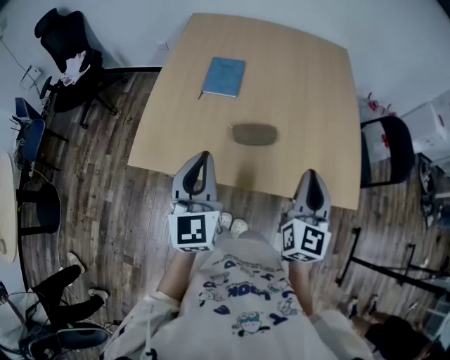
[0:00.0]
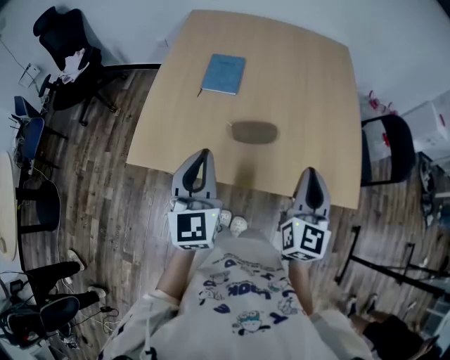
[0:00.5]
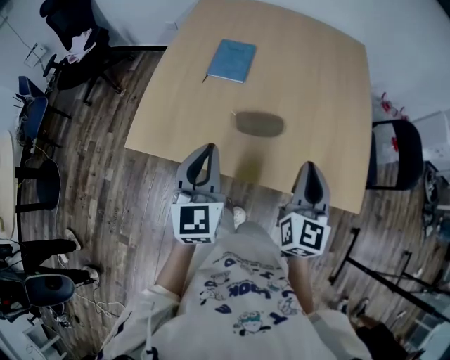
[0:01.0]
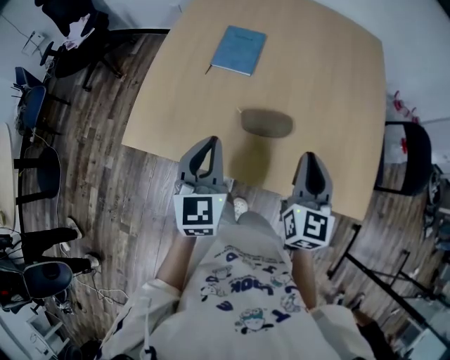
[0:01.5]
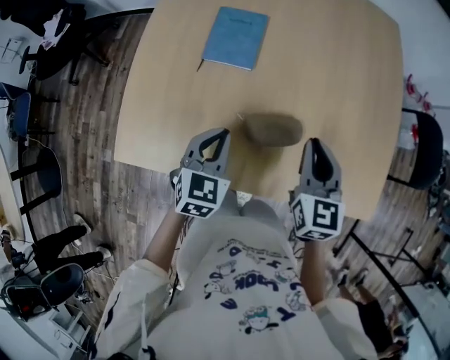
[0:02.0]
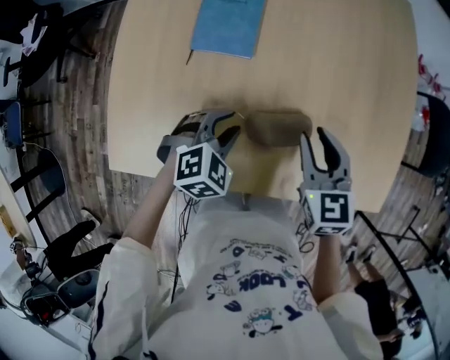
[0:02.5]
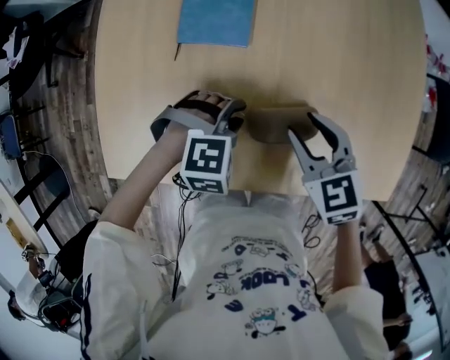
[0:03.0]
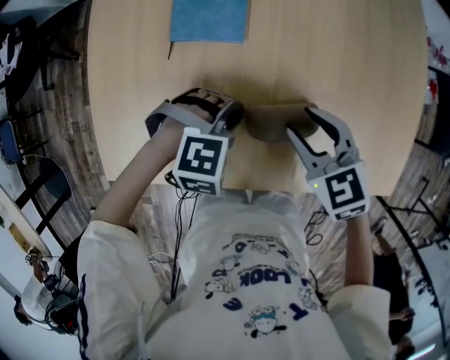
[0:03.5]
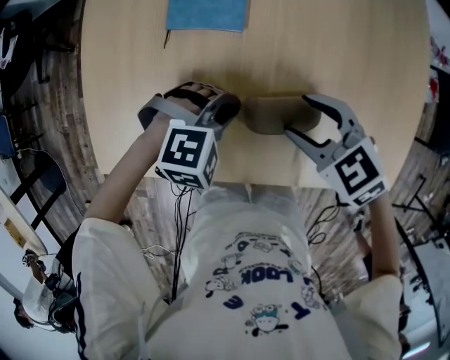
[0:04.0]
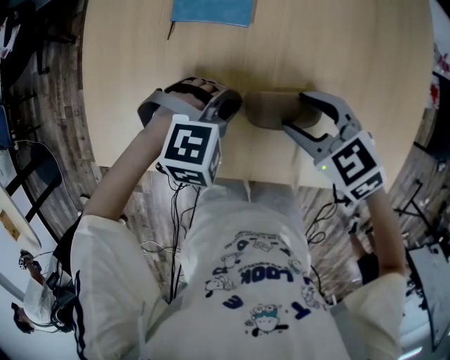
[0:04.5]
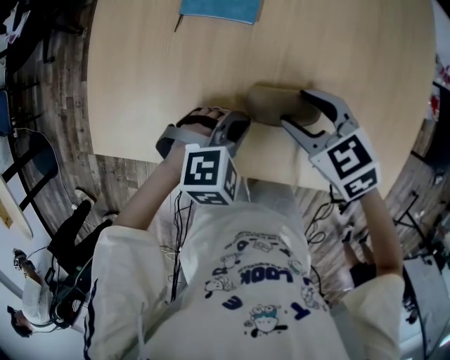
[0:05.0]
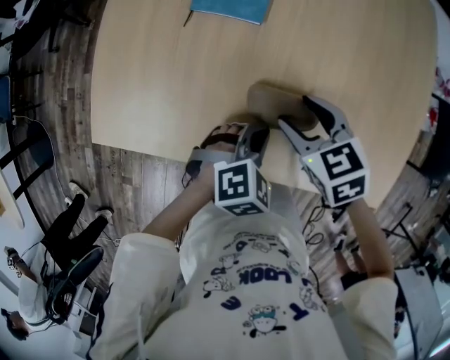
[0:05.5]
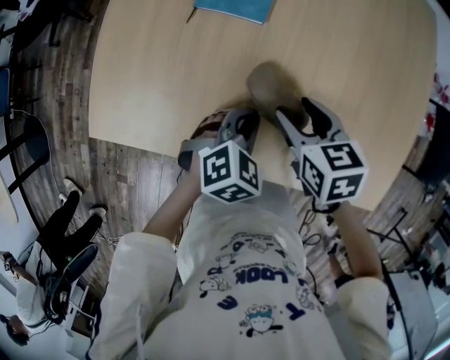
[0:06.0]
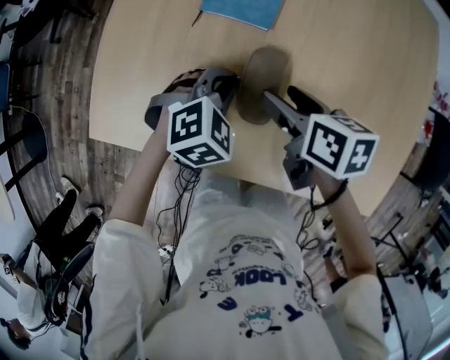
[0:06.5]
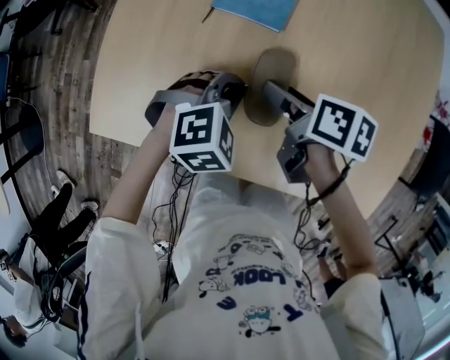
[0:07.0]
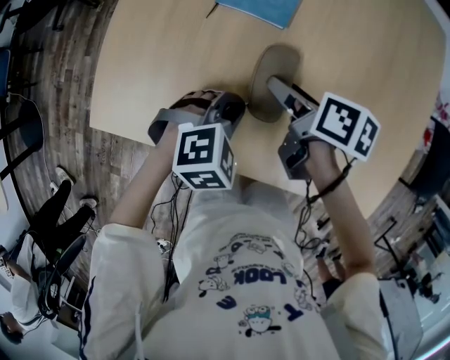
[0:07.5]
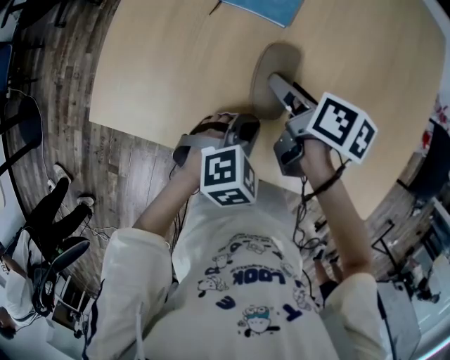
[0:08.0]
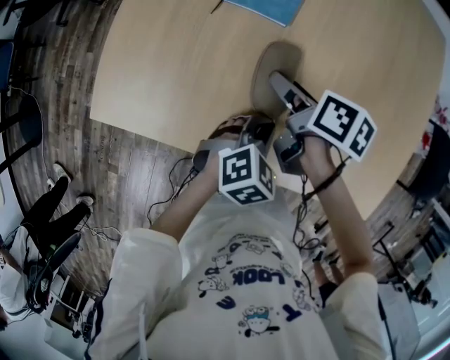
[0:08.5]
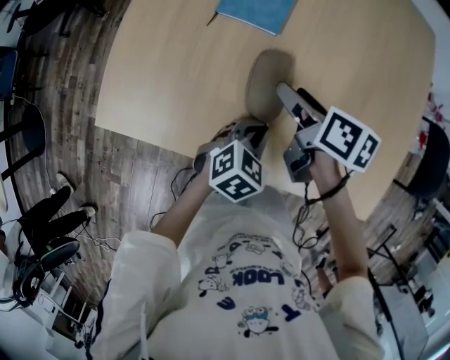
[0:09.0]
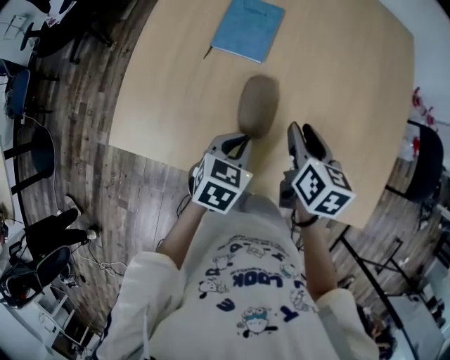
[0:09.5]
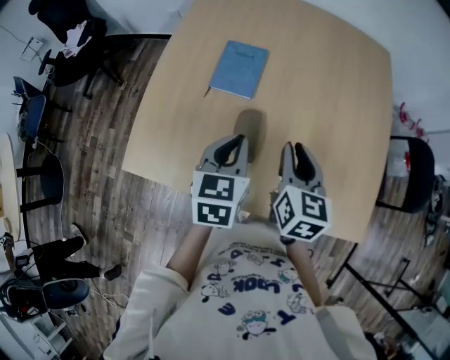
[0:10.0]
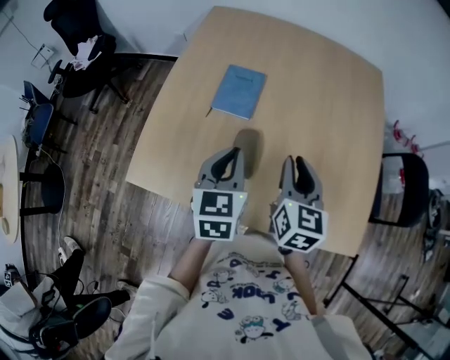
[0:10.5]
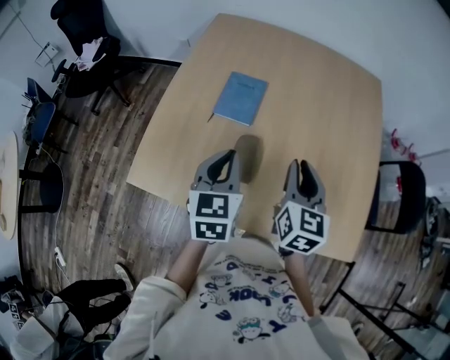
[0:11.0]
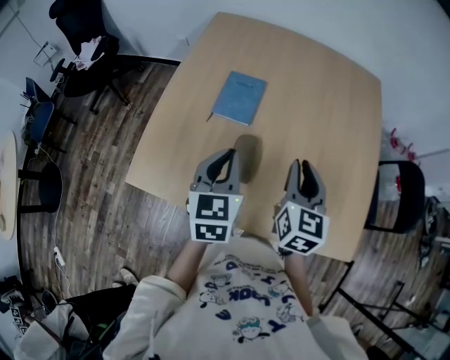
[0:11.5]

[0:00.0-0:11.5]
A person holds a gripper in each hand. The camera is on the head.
0:00.0 to 0:02.0: The right gripper is displaced forward and downward by some 20 cm, and rotates approximately 30 degrees, while the left gripper goes some 25 cm downward and forward, and points its fingers some 30 degrees further downward.
0:02.0 to 0:04.0: The two grippers go about 10 cm downward. The left gripper rotates around the line of its fingers by some 50 degrees, clockwise from behind, and opens, then closes once more. The right gripper points its fingers roughly 30 degrees further downward, and opens.
0:04.0 to 0:06.0: The left gripper rotates around the line of its fingers by roughly 50 degrees, counterclockwise from behind. The right gripper turns by about 30 degrees.
0:06.0 to 0:07.5: The right gripper goes roughly 10 cm forward and to the left, and swivels about 40 degrees; the left gripper travels to the left by roughly 5 cm, and travels forward and back again, approximately 10 cm each way.
0:07.5 to 0:09.5: The right gripper moves to the right and upward, some 10 cm, rotates approximately 30 degrees, and closes its fingers, while the left gripper rotates around the line of its fingers by roughly 50 degrees, counterclockwise from behind.
0:09.5 to 0:11.5: Both grippers move upward, roughly 15 cm. The left gripper swivels about 30 degrees; the right gripper changes its angle by some 30 degrees.

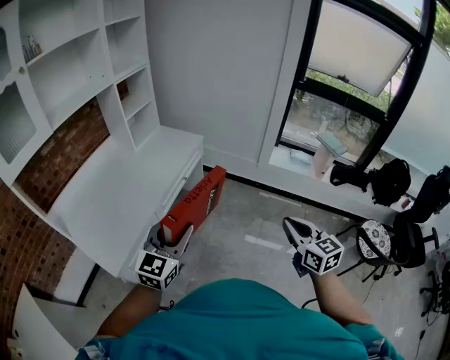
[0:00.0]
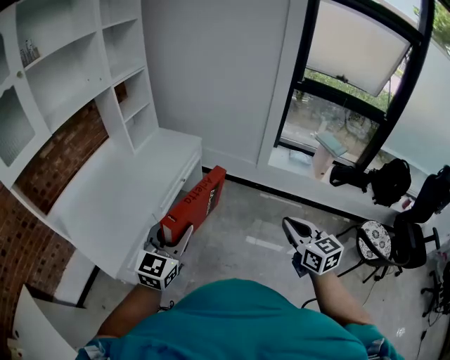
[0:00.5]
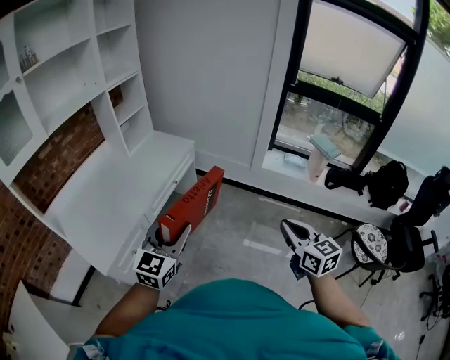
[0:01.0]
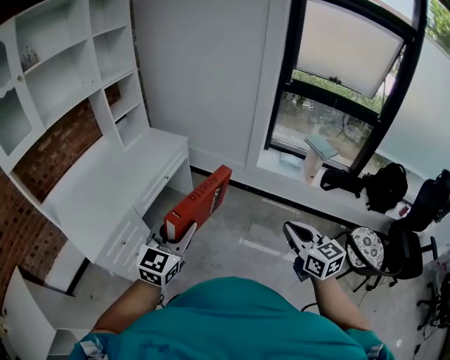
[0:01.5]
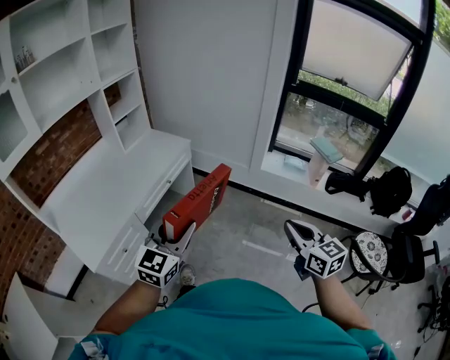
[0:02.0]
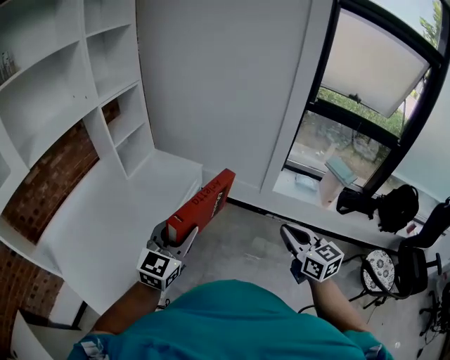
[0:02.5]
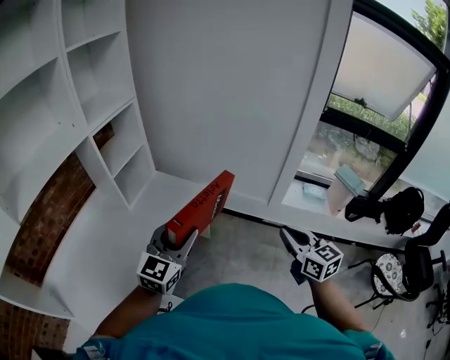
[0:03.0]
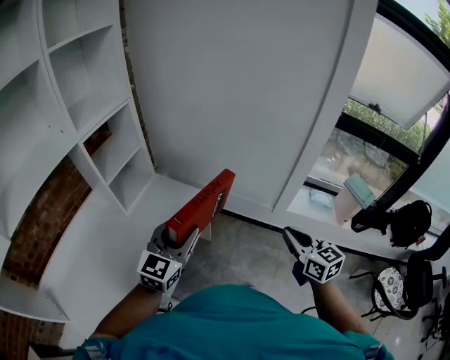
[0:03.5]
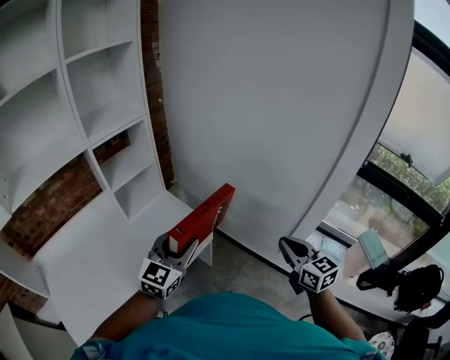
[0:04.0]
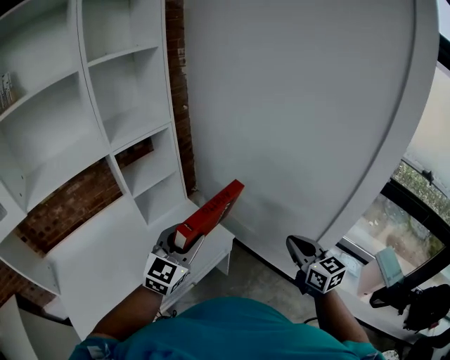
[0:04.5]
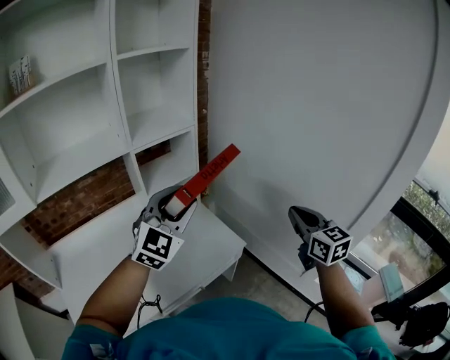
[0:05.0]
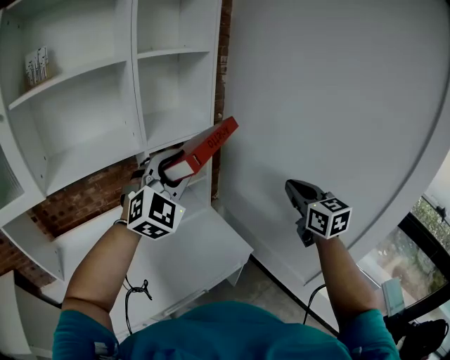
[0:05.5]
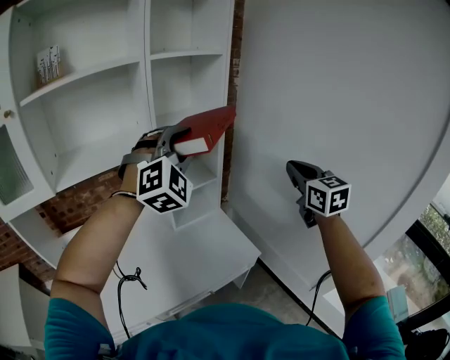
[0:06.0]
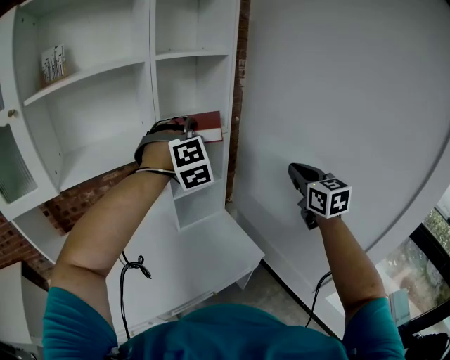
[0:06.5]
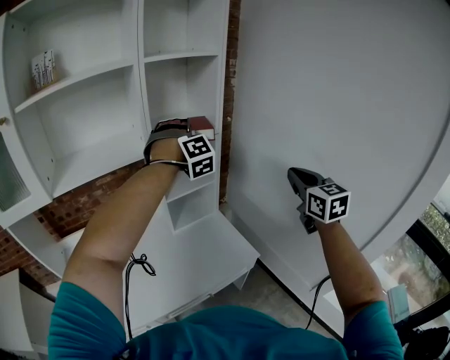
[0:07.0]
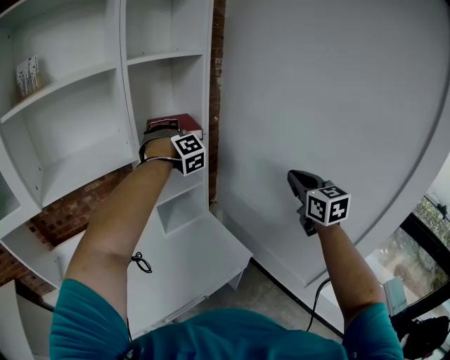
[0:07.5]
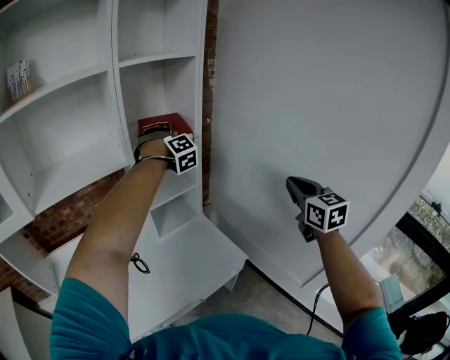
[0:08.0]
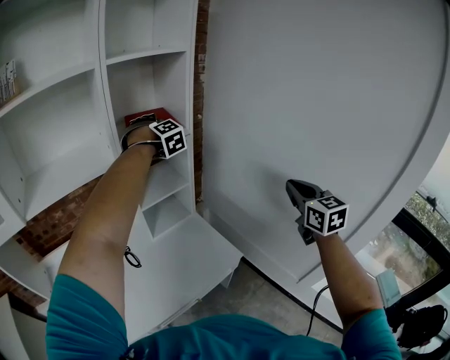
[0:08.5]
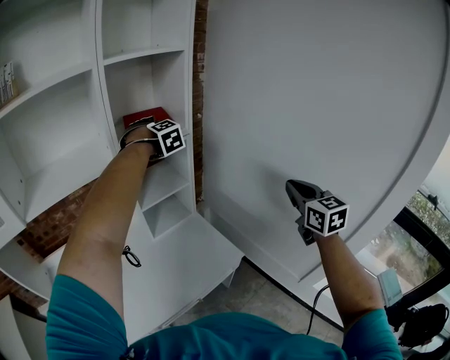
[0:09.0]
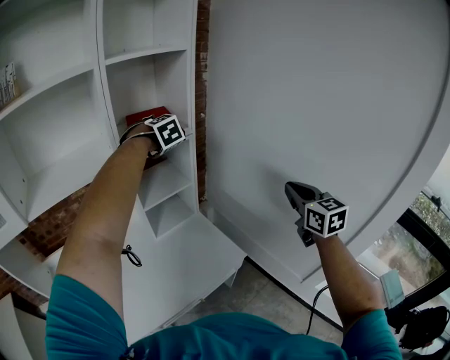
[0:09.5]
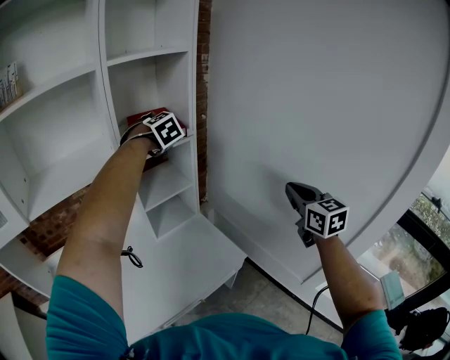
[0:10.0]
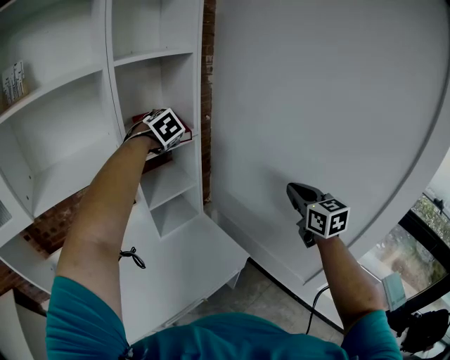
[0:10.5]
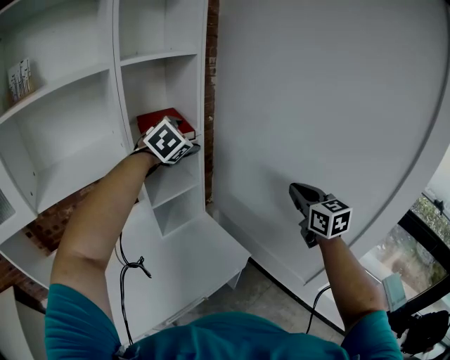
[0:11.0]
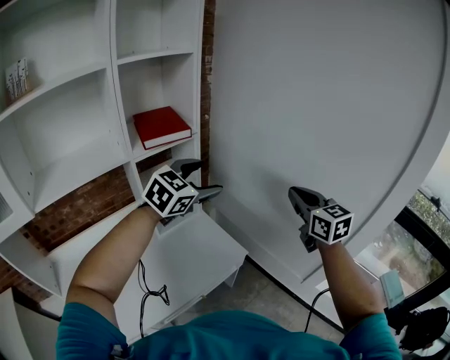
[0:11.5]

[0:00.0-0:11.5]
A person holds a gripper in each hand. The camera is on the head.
0:00.0 to 0:02.0: The grippers both shift to the right by roughly 15 cm.
0:02.0 to 0:04.0: The two grippers travel together, forward, approximately 50 cm.
0:04.0 to 0:06.0: The left gripper moves upward, to the left and forward, about 35 cm, and rolls clockwise, seen from behind, by about 60 degrees. The right gripper is displaced forward, upward and to the left by about 40 cm.
0:06.0 to 0:07.5: The right gripper moves some 5 cm. The left gripper moves forward, approximately 20 cm, and changes its angle by about 40 degrees.
0:07.5 to 0:09.5: The left gripper changes place by about 5 cm, changes its angle by some 30 degrees, and opens up.
0:09.5 to 0:11.5: The left gripper shifts by about 25 cm, and turns by approximately 60 degrees.

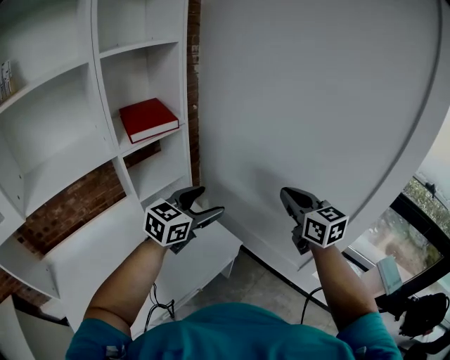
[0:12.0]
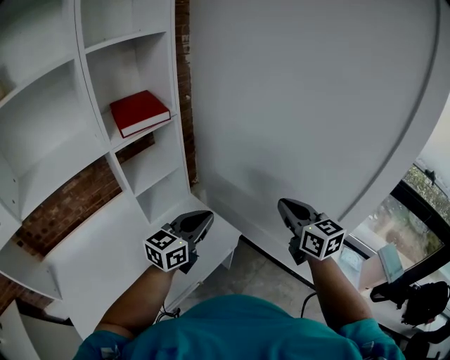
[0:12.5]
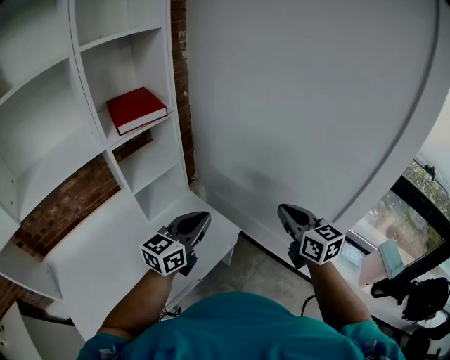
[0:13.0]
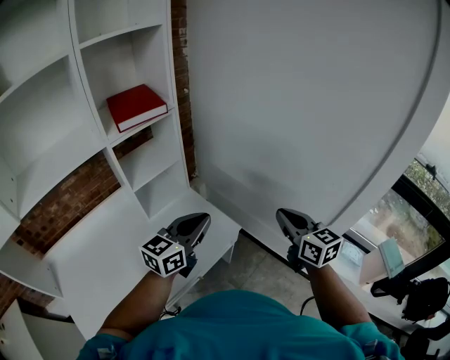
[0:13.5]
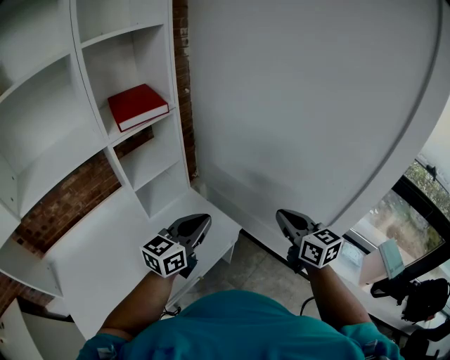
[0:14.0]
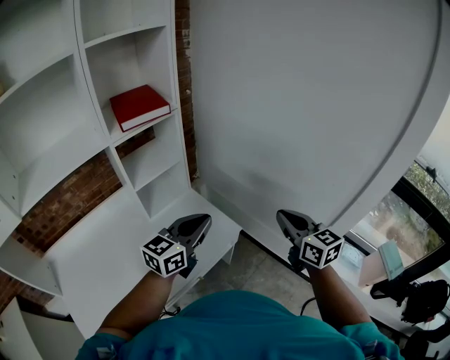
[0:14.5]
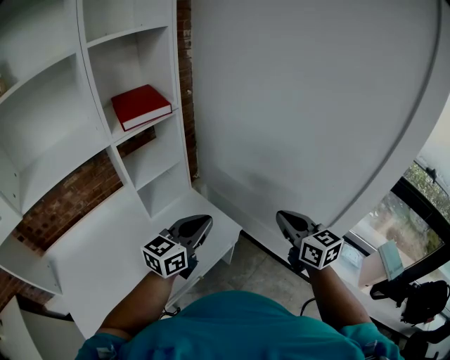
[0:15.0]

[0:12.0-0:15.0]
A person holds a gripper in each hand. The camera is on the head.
0:12.0 to 0:13.5: The right gripper travels downward and backward by roughly 10 cm. The left gripper heads backward and downward, covering approximately 10 cm, and closes up.
0:13.5 to 0:15.0: Both grippers stay about where they are.
